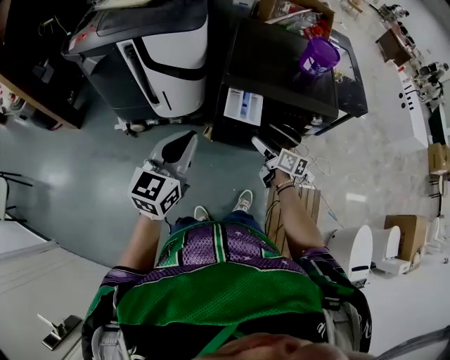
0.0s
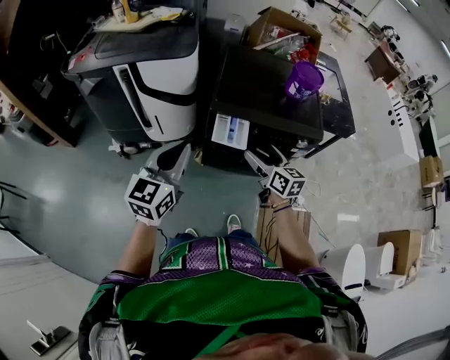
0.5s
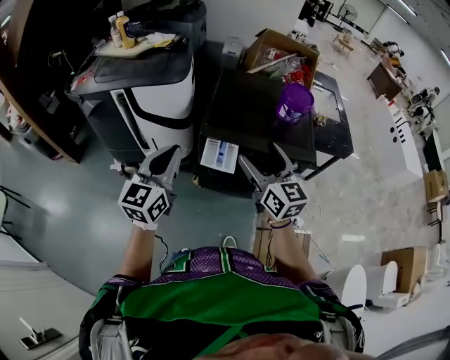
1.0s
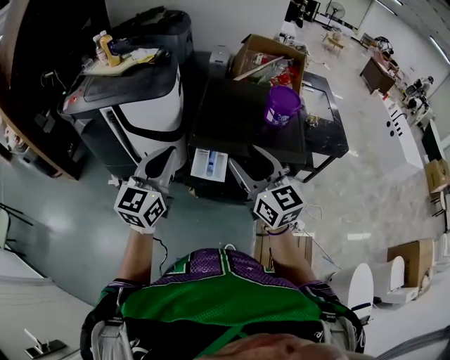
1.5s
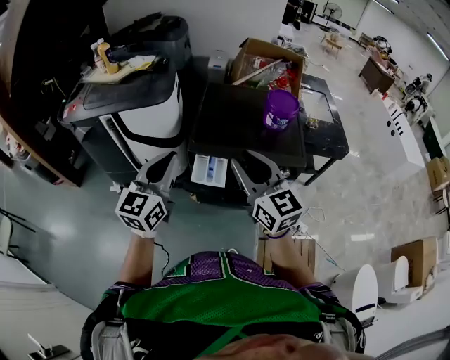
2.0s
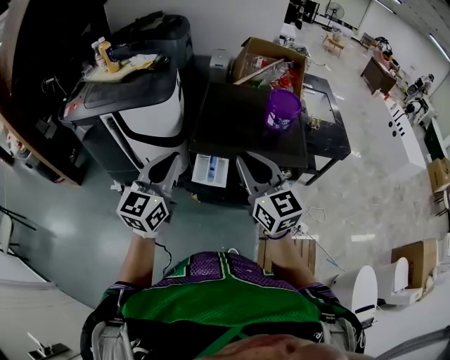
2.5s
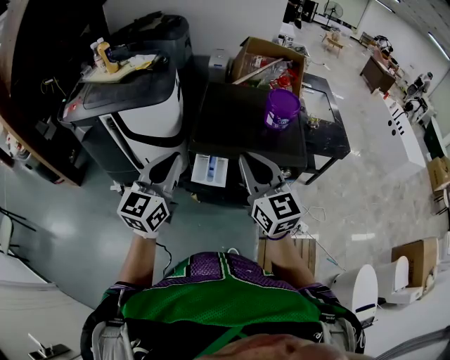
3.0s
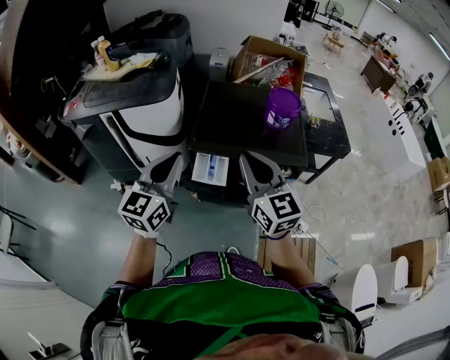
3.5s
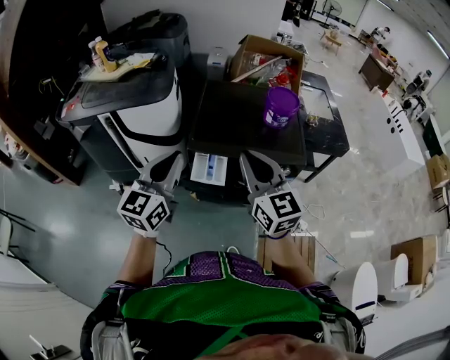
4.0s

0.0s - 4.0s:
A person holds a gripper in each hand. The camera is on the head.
0.0s - 2.0s: The left gripper travels to the right, upward and forward by roughly 15 cm, while the right gripper moves upward, roughly 35 cm, rotates around the line of its fingers by roughly 50 degrees, counterclockwise from behind, and closes.
2.0s - 4.0s: The grippers move only a little.

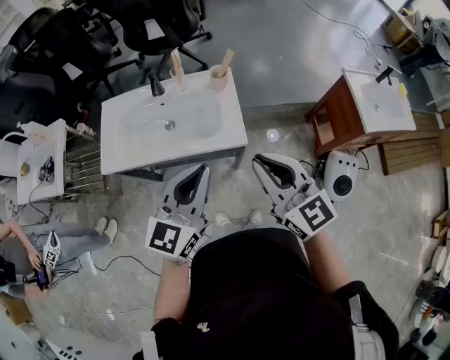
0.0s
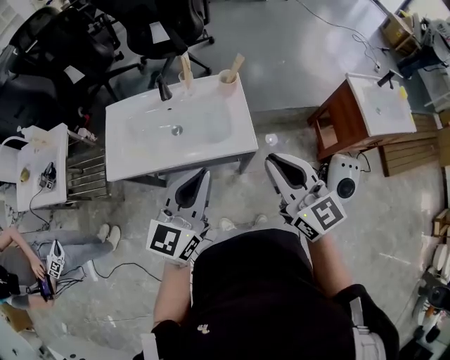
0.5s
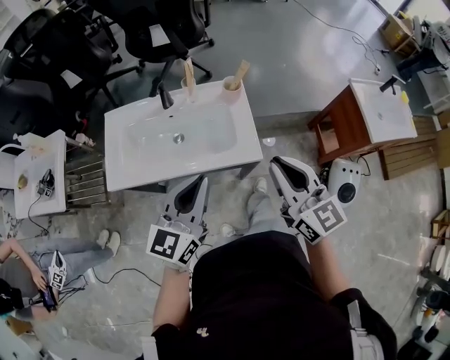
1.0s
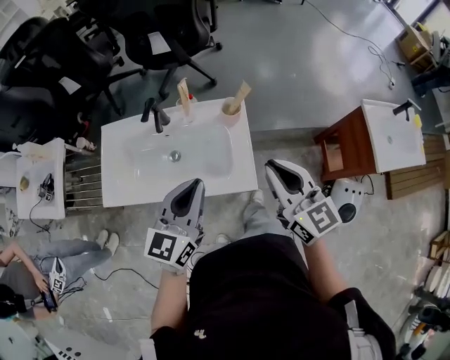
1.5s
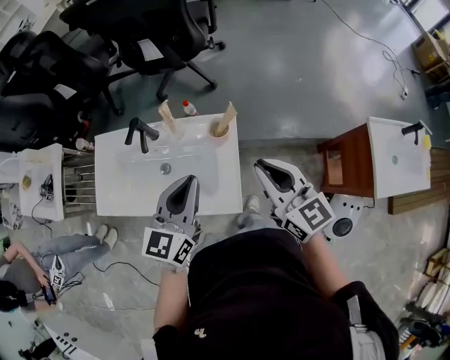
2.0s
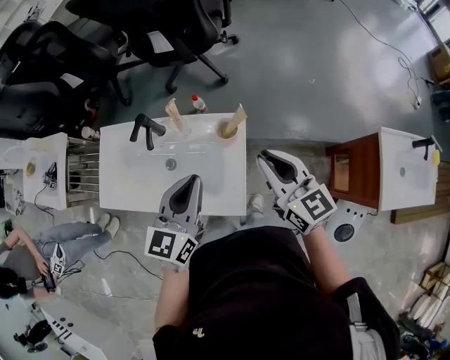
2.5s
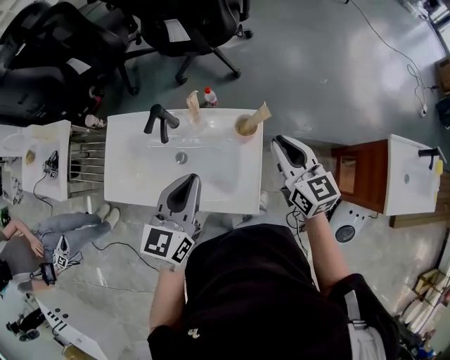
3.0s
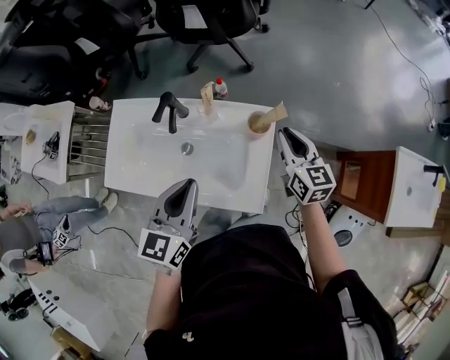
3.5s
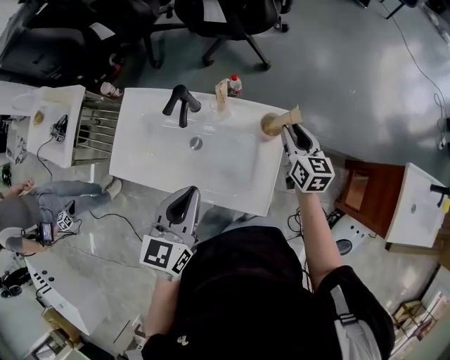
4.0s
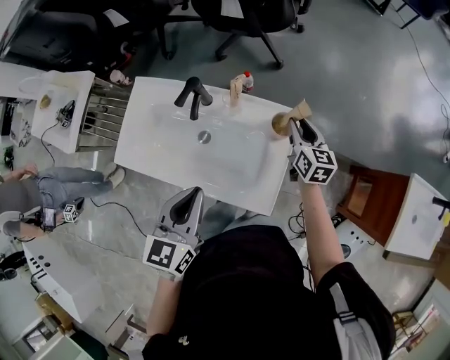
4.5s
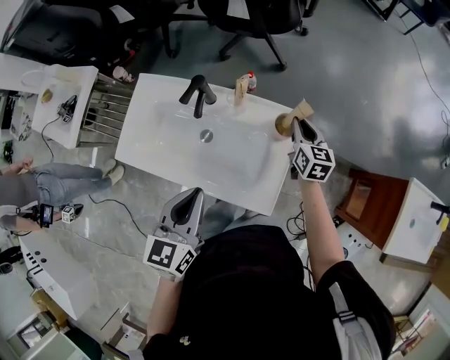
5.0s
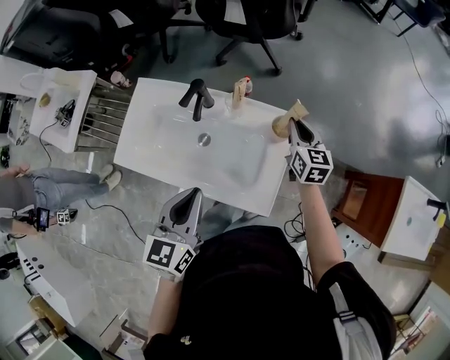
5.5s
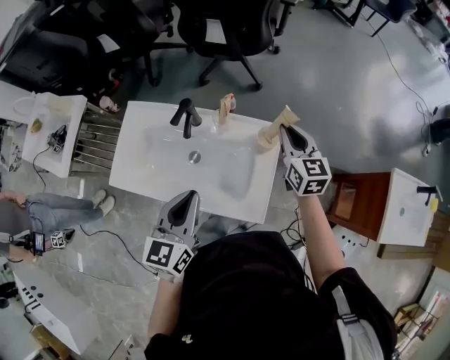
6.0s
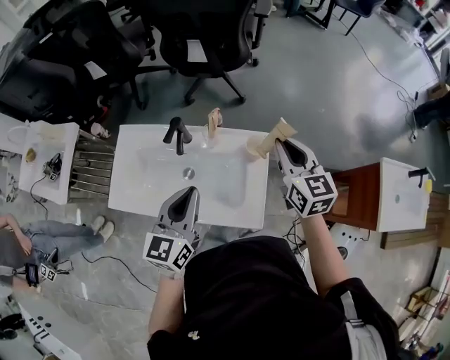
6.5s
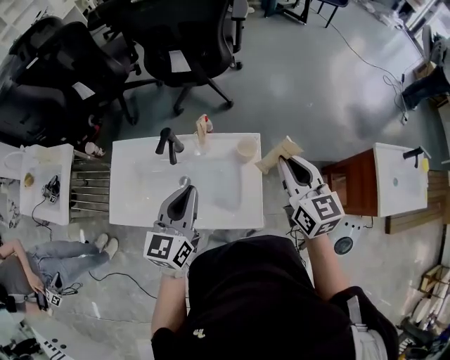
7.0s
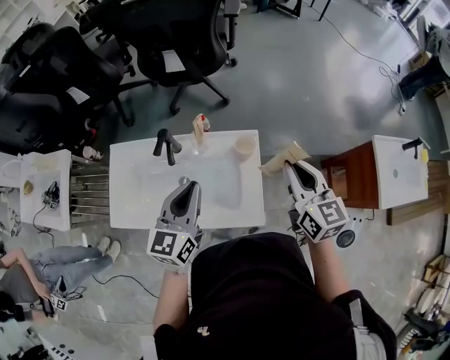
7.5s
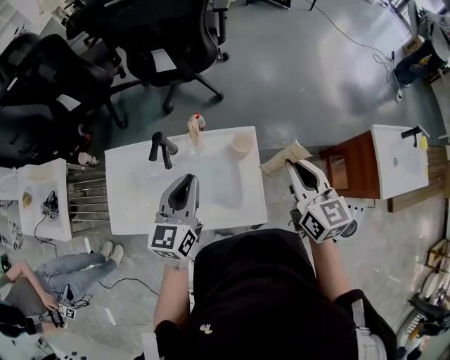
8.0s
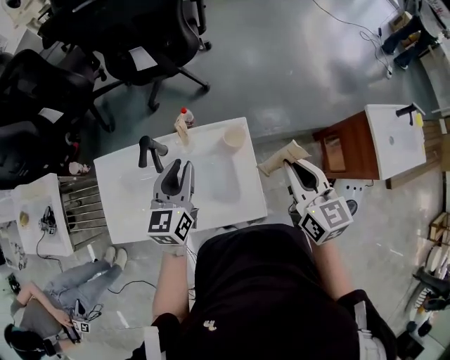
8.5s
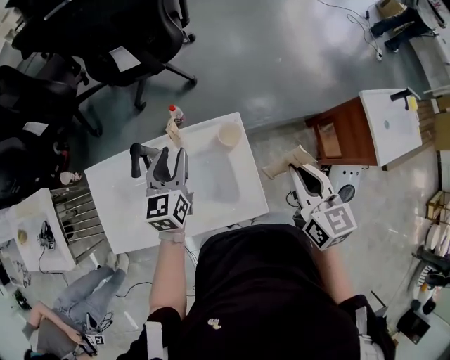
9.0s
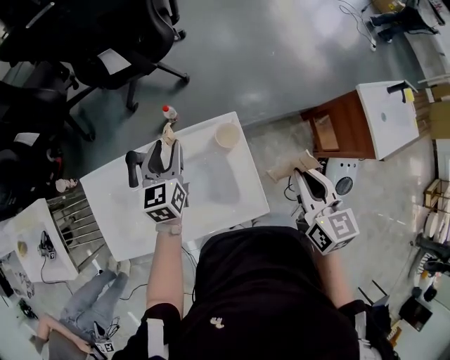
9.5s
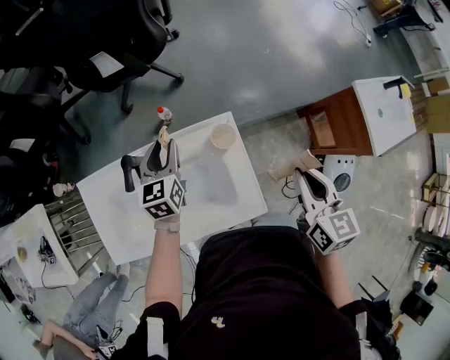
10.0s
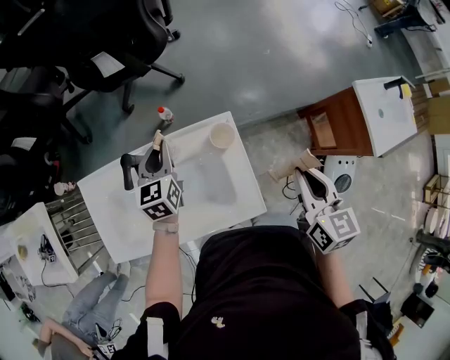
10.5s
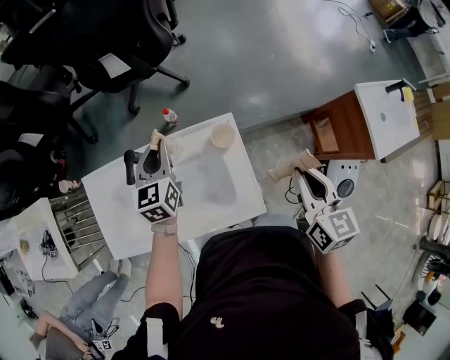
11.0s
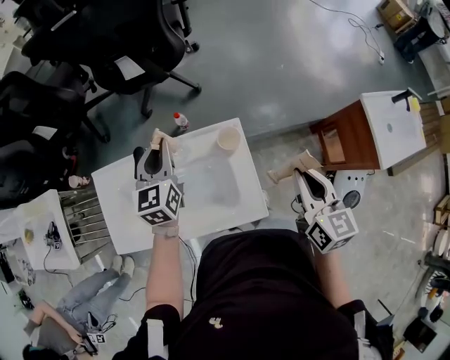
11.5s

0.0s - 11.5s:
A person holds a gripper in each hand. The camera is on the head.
0.0s - 2.0s: Both grippers move forward, some 25 cm.
2.0s - 4.0s: The left gripper goes approximately 10 cm to the left; the right gripper travels downward and forward by roughly 25 cm, and turns by roughly 20 degrees.
4.0s - 6.0s: The right gripper moves upward, about 10 cm.
6.0s - 7.5s: The right gripper goes about 15 cm backward, upward and to the right, while the left gripper is displaced forward by approximately 5 cm.
7.5s - 9.5s: The right gripper ends up roughly 5 cm from where it was, and swivels some 20 degrees. Meanwhile the left gripper moves forward and downward, roughly 20 cm, and opens its fingers.
9.5s - 11.5s: The left gripper moves upward, approximately 10 cm, and closes up.

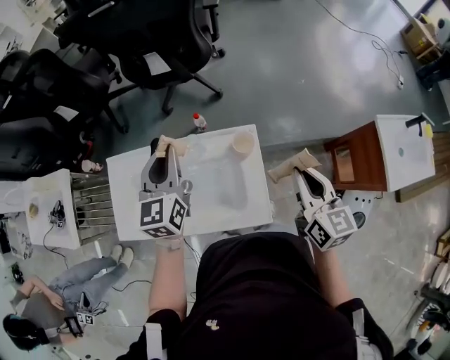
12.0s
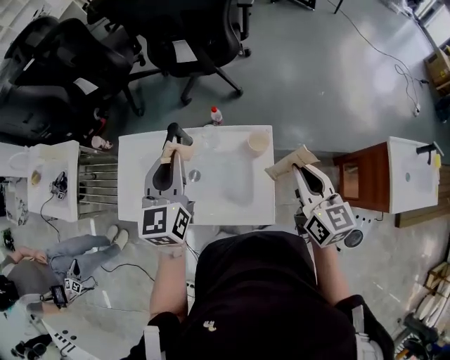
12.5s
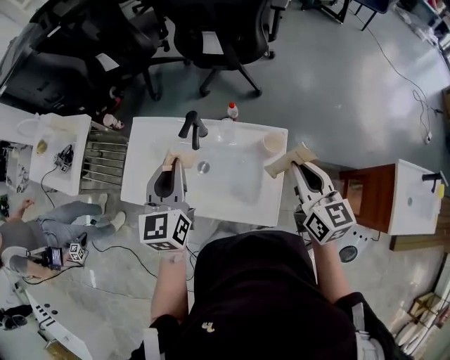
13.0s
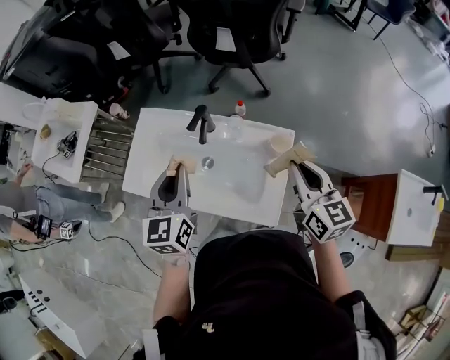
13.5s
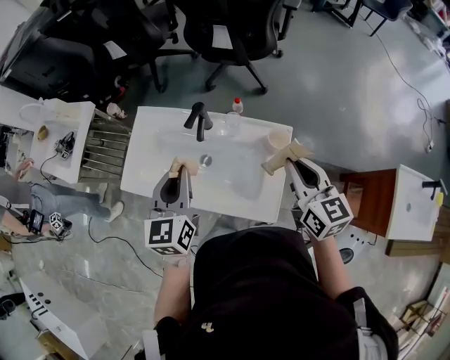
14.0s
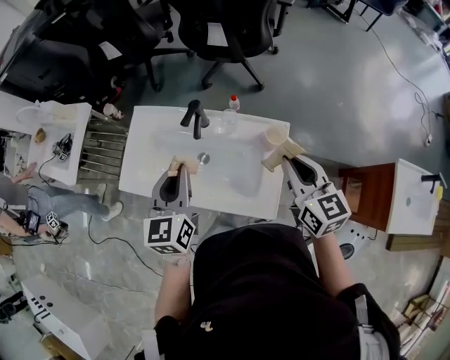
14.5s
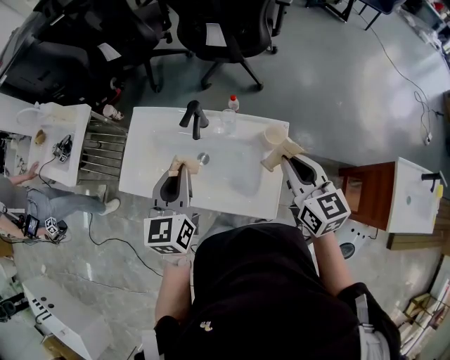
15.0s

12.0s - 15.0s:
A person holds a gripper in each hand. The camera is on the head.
12.0s - 13.5s: The right gripper travels to the left and forward by approximately 10 cm, and turns by some 20 degrees. Meanwhile the left gripper moves backward and to the left, roughly 15 cm.
13.5s - 15.0s: The grippers stay close to where they were, moving slightly.

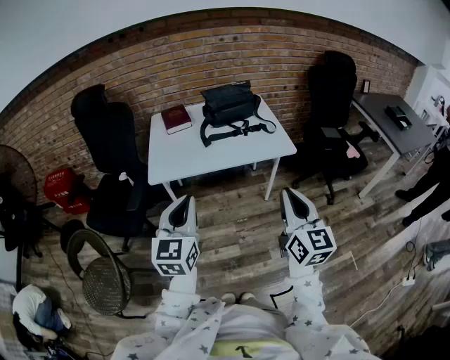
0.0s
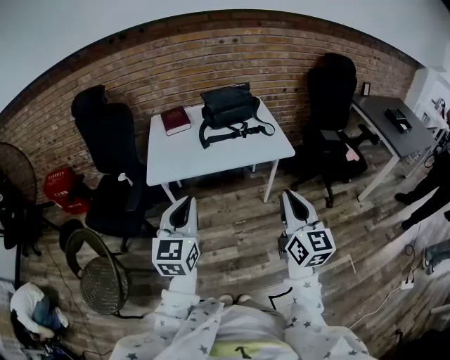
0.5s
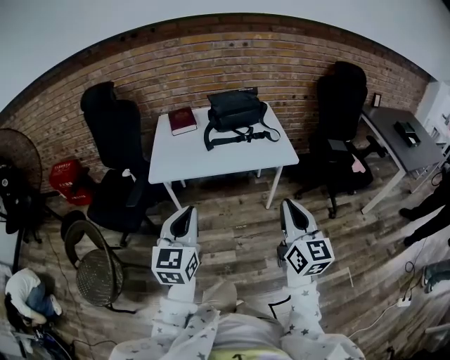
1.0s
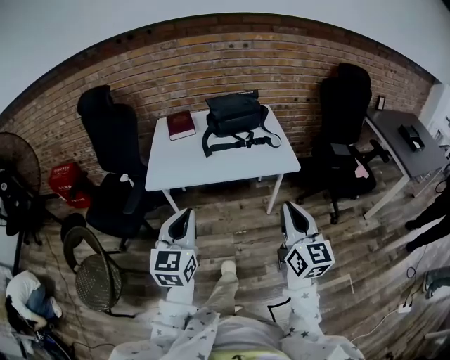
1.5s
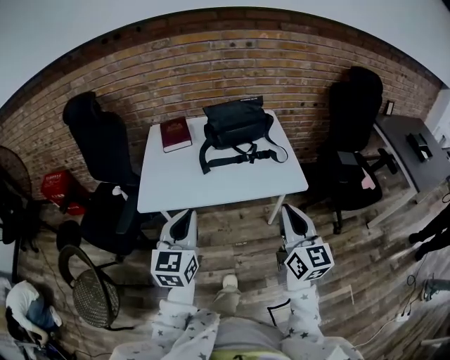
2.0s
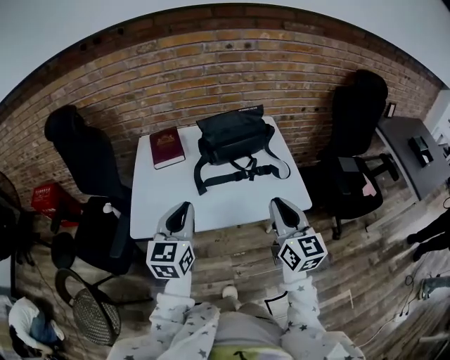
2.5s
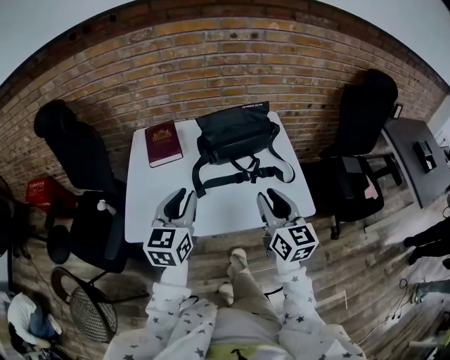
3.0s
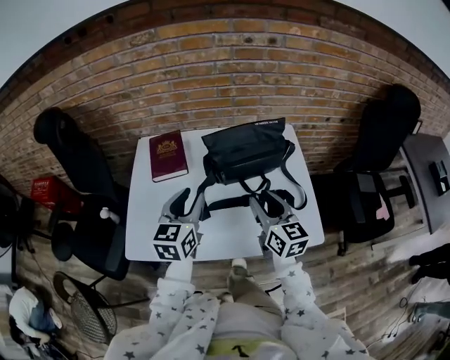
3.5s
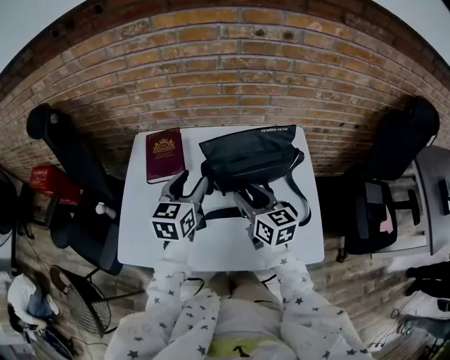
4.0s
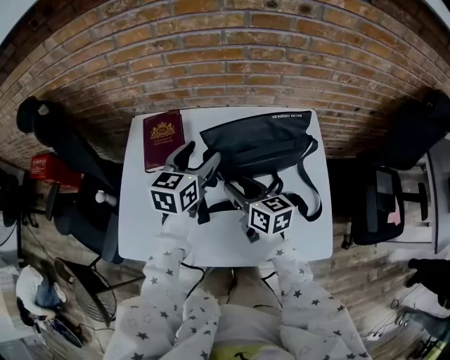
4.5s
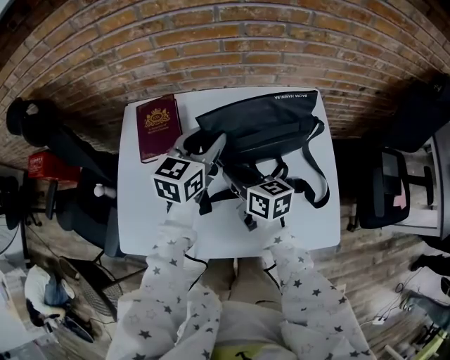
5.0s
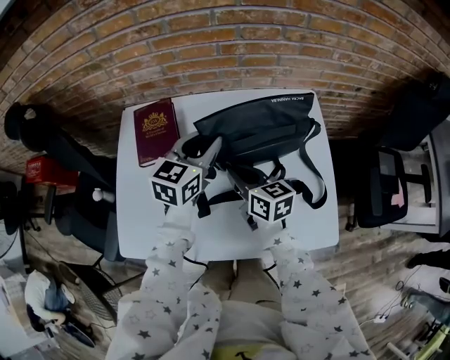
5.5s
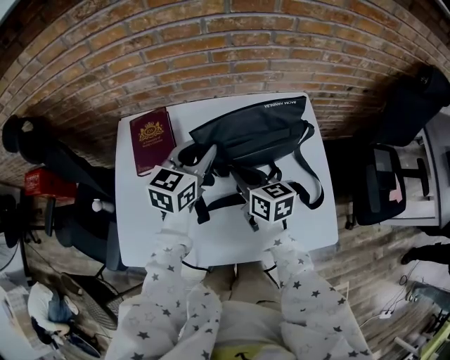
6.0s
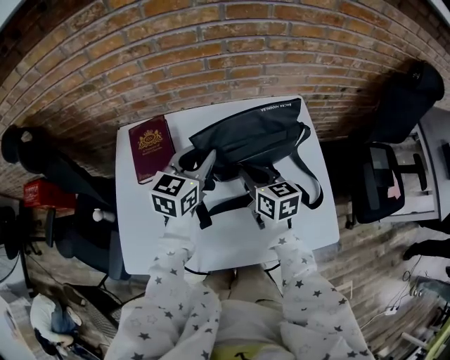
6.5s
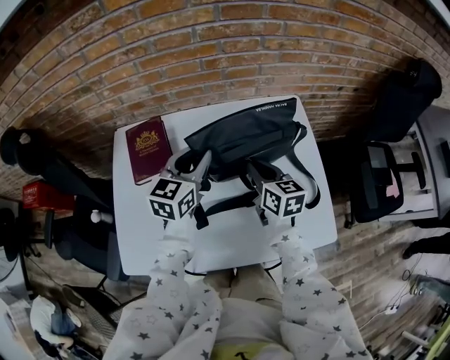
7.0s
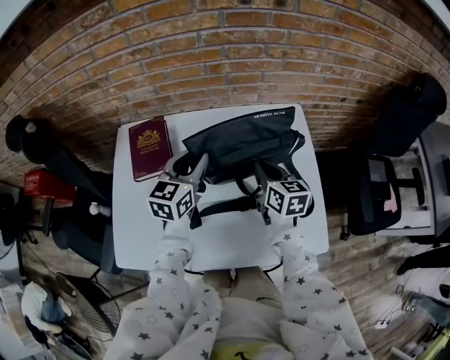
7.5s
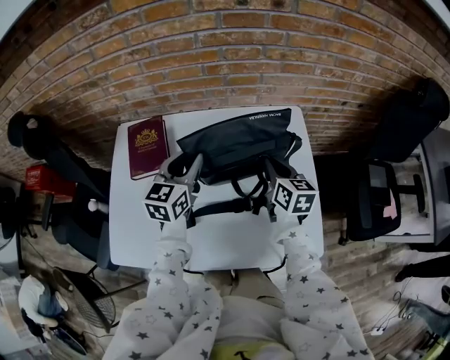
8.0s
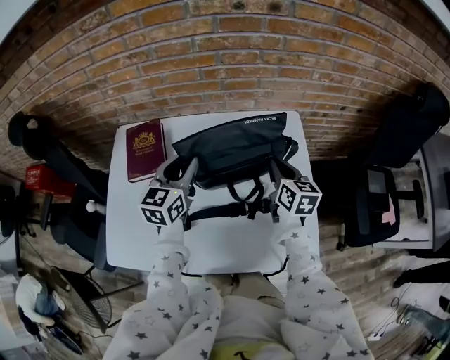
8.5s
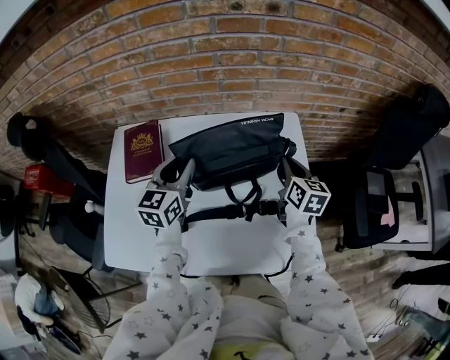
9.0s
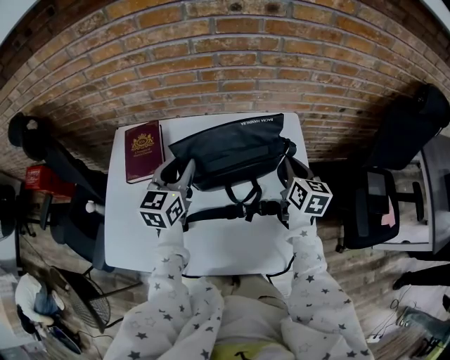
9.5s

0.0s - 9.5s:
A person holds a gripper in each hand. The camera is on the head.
0.0s - 2.0s: The two grippers go approximately 15 cm forward.
2.0s - 4.0s: The two grippers travel together, forward, roughly 40 cm. The right gripper changes its angle by approximately 30 degrees, and opens. The left gripper opens.
4.0s - 5.5s: The right gripper shifts some 5 cm downward, and closes its fingers; the left gripper shifts some 10 cm forward and to the right.
5.5s - 7.5s: The right gripper goes about 10 cm to the right.
7.5s - 9.5s: The right gripper heads to the right, covering roughly 15 cm.
